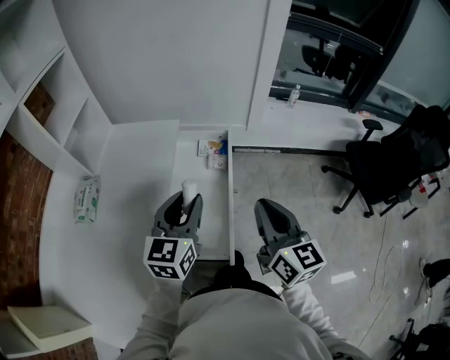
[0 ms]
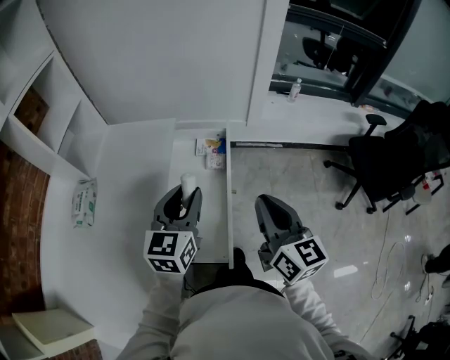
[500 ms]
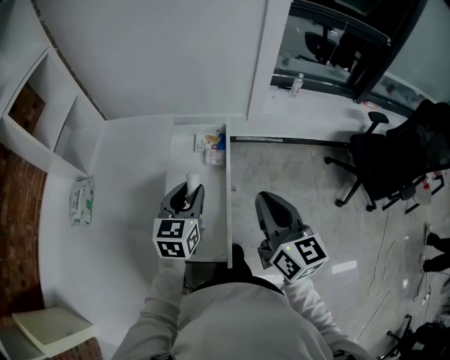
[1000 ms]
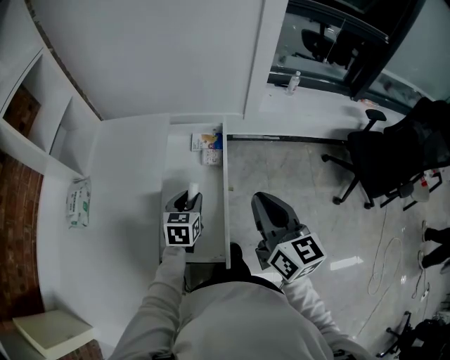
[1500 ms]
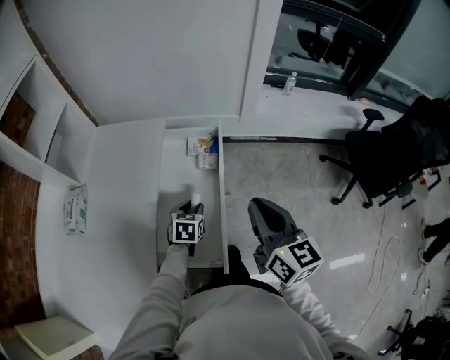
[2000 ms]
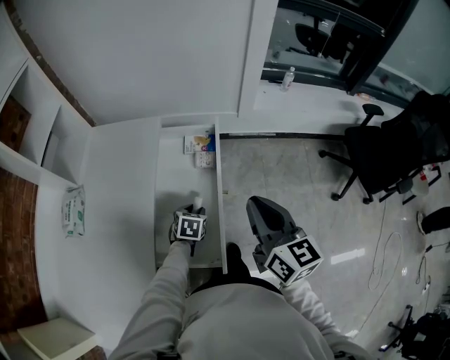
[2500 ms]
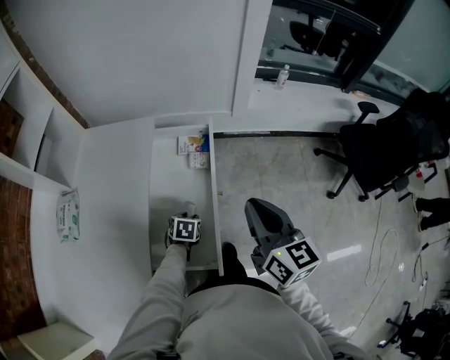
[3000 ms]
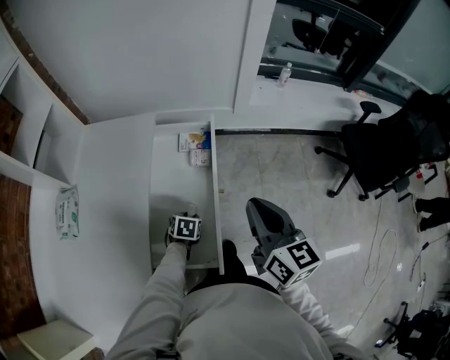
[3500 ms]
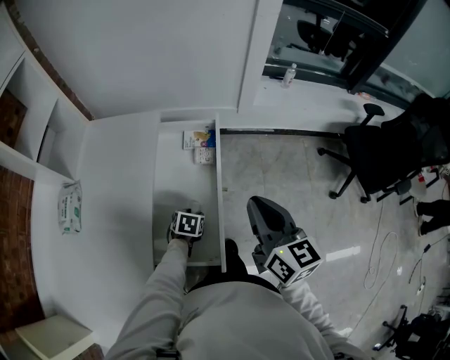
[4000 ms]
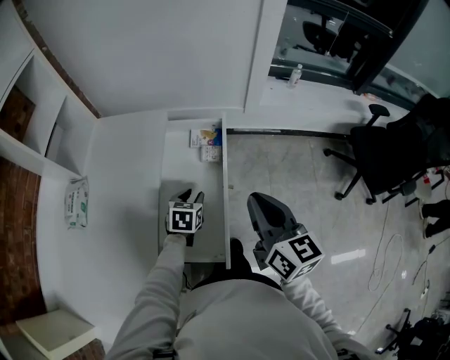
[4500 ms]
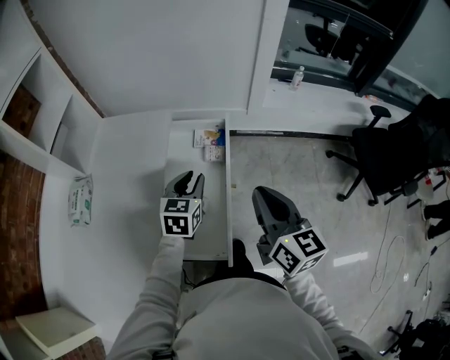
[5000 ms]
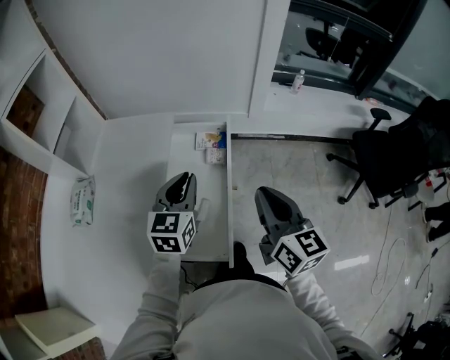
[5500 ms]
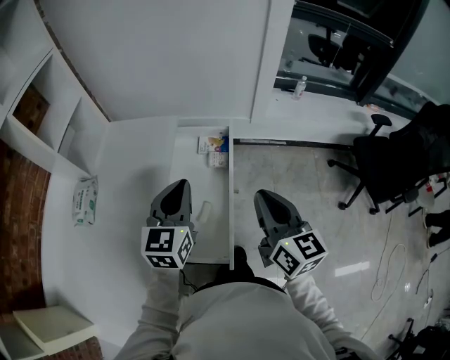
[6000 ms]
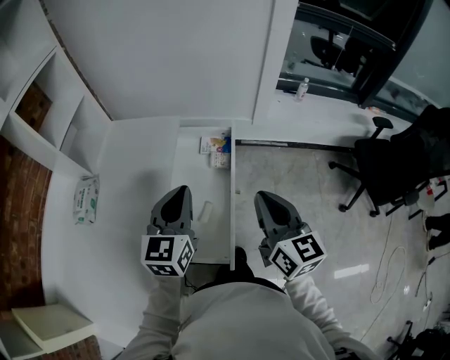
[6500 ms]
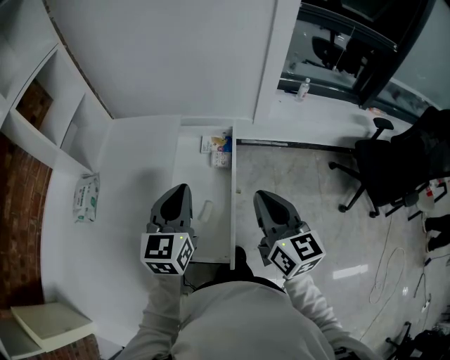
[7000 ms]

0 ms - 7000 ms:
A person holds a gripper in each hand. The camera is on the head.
0 ms - 2000 ms: The right gripper goes about 5 cm forward, while the left gripper goes approximately 25 cm downward, and tilts its fingers some 40 degrees downward.
2000 ms - 3500 ms: The left gripper is displaced downward by approximately 10 cm.
3500 ms - 5000 ms: The left gripper moves upward, some 25 cm, and angles its fingers upward, by about 40 degrees.
5000 ms - 7000 ms: The left gripper goes approximately 15 cm upward and backward, and closes.

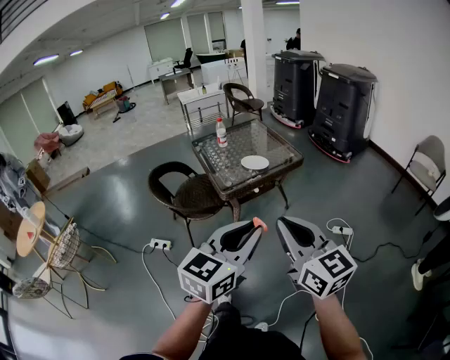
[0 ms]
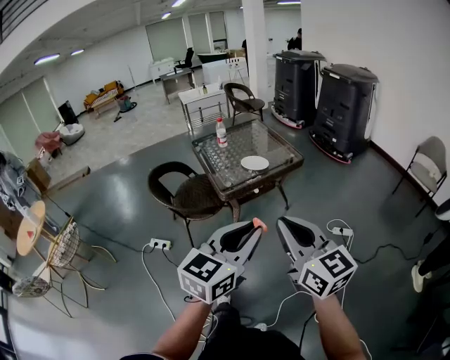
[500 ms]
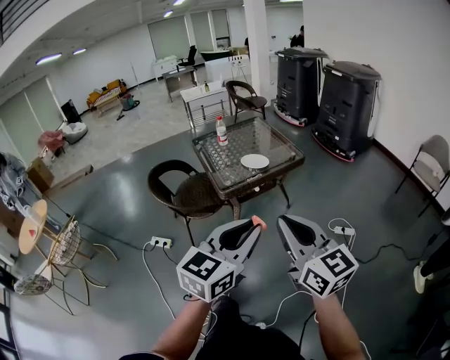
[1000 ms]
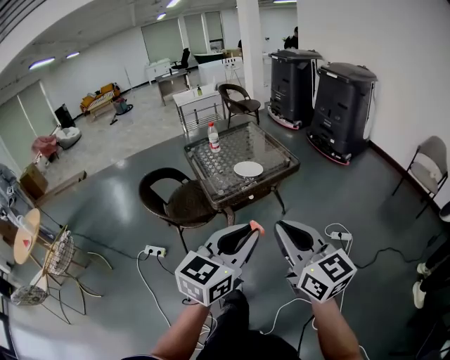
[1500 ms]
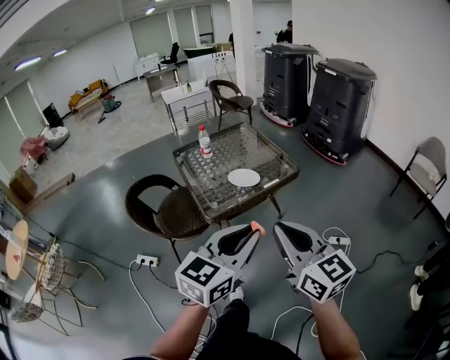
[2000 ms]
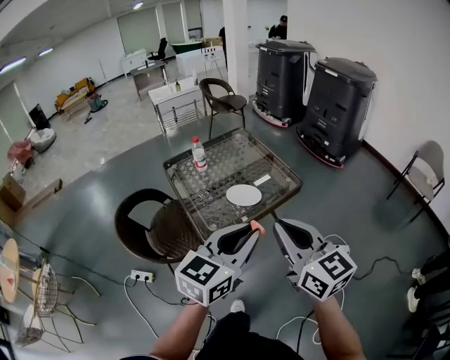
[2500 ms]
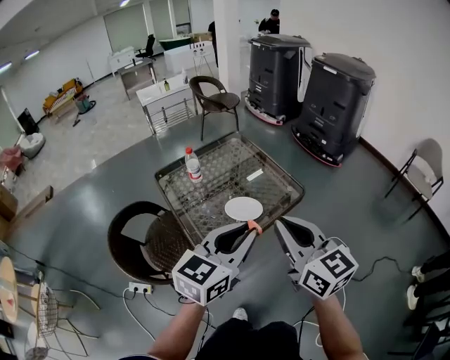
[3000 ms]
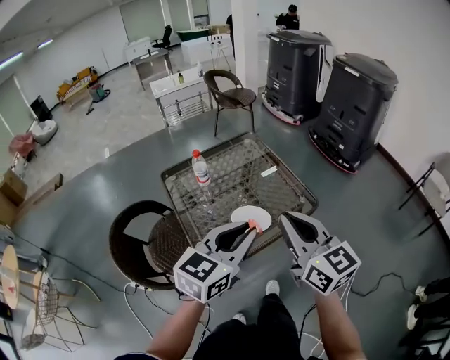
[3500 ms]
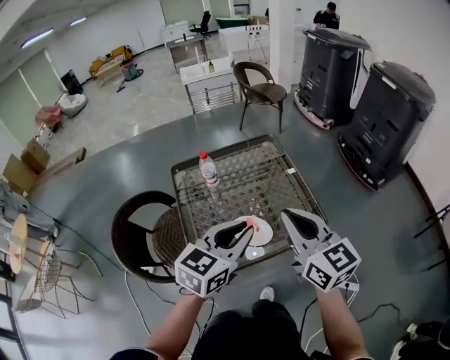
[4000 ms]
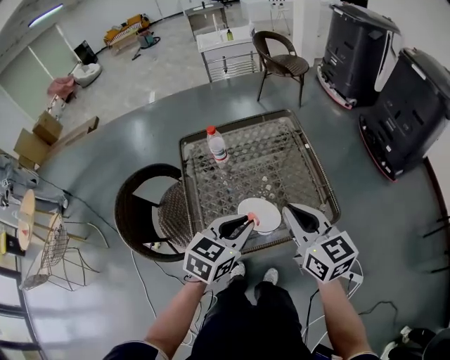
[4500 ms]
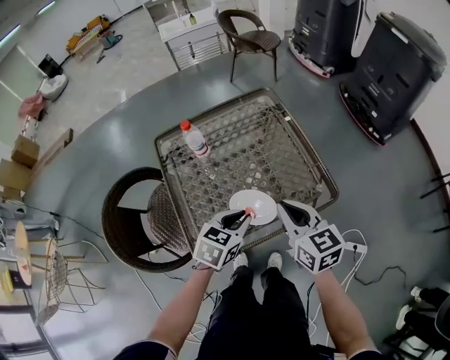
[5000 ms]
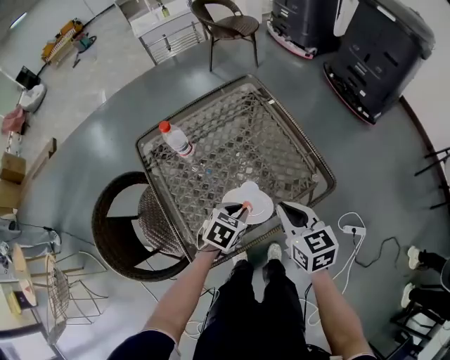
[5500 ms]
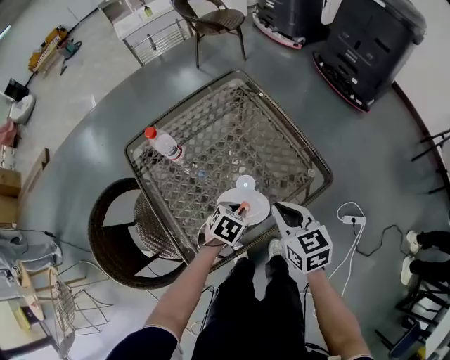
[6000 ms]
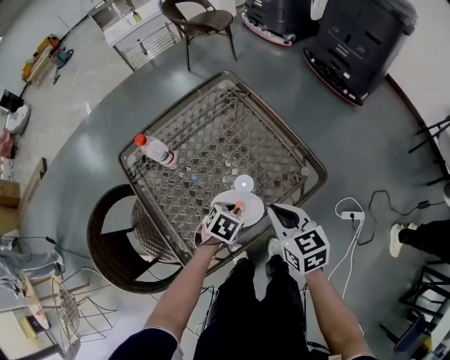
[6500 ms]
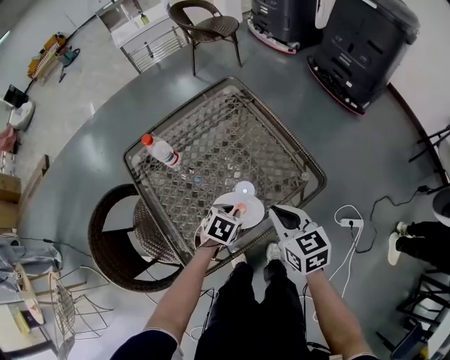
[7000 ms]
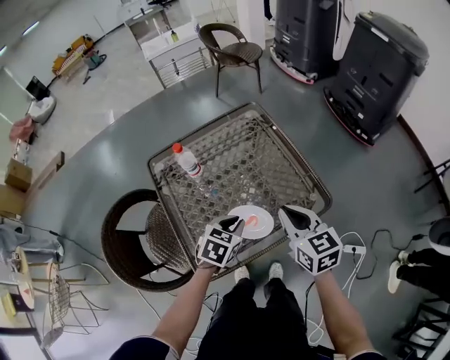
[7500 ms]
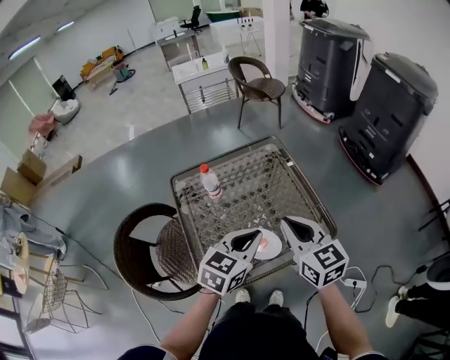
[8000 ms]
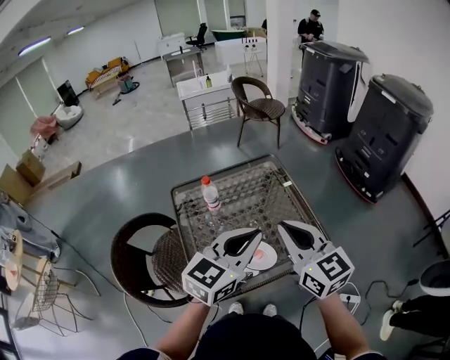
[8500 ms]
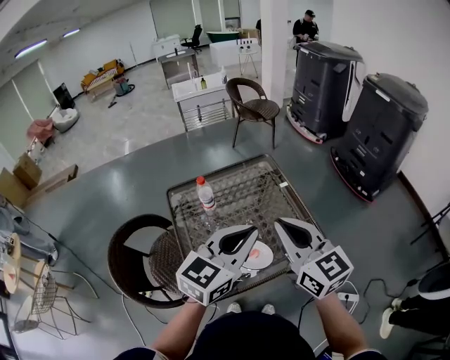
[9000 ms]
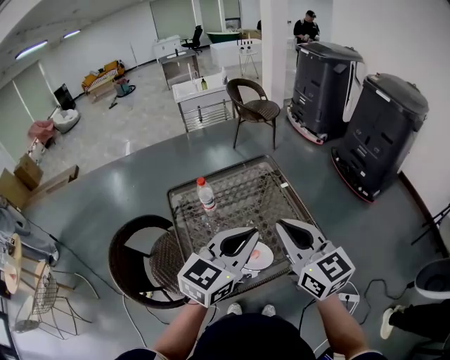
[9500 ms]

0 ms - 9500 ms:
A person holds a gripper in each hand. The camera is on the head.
0 ms - 2000 ms: Both grippers travel together forward, about 15 cm.
2000 ms - 4000 ms: Both grippers move forward, roughly 40 cm.
4000 ms - 5500 ms: Both grippers move downward, about 25 cm. The left gripper tilts its fingers some 40 degrees downward. The right gripper changes its angle by roughly 30 degrees.
5500 ms - 7500 ms: The grippers both shift upward by roughly 5 cm.
7500 ms - 9500 ms: The grippers both shift upward by approximately 25 cm. The left gripper tilts its fingers some 40 degrees upward, while the right gripper turns by roughly 20 degrees.

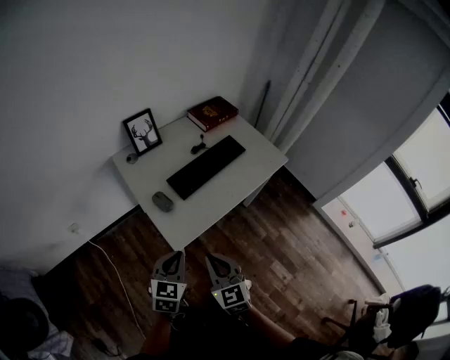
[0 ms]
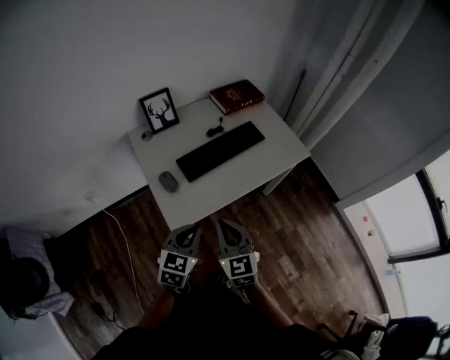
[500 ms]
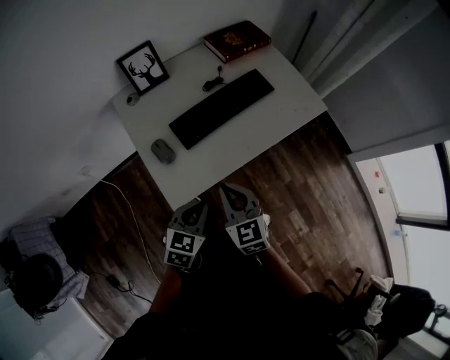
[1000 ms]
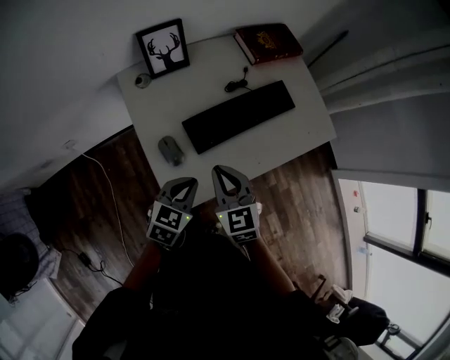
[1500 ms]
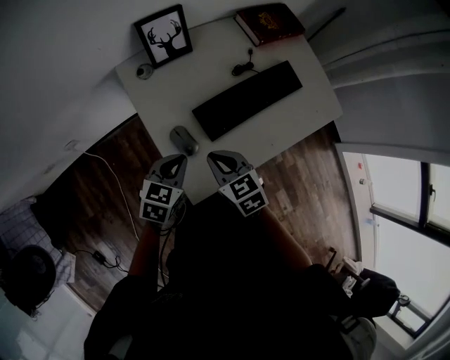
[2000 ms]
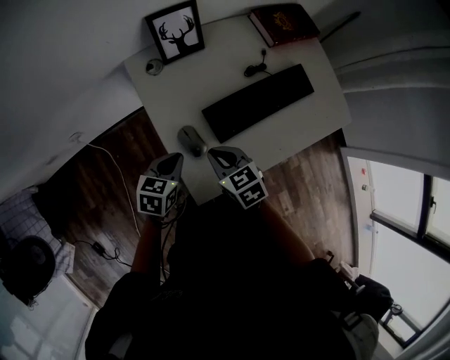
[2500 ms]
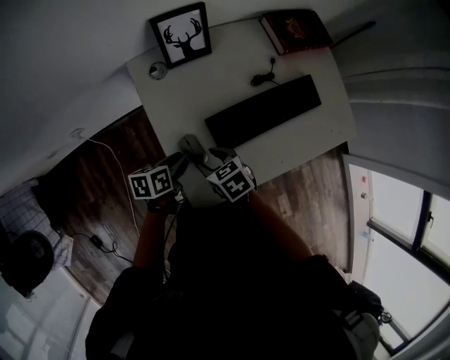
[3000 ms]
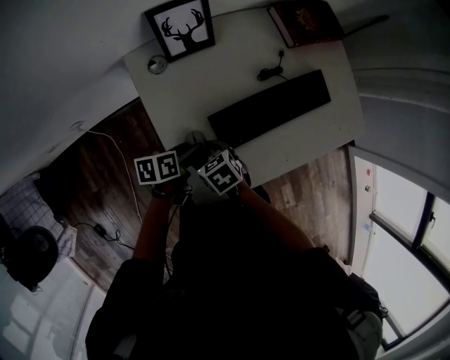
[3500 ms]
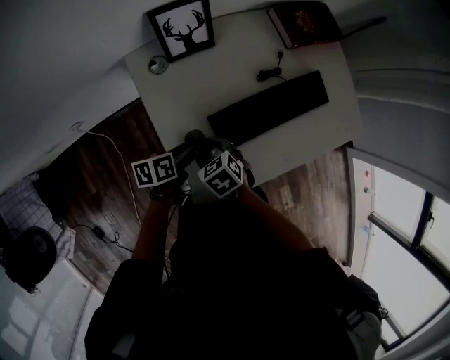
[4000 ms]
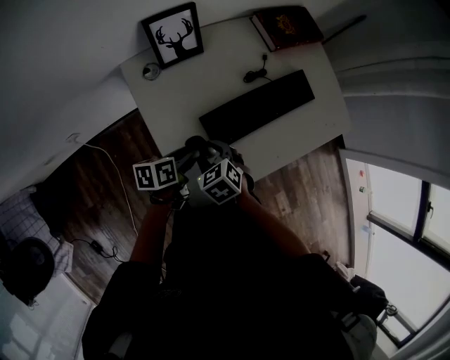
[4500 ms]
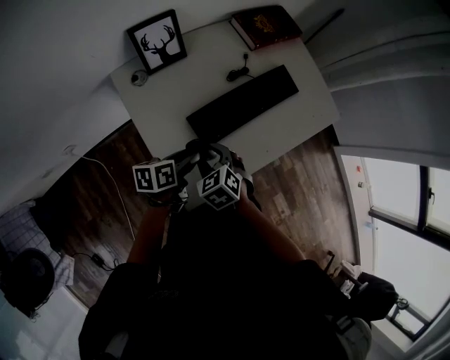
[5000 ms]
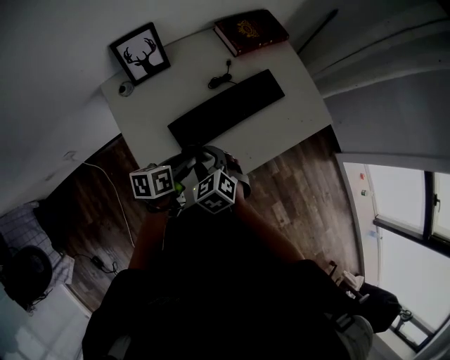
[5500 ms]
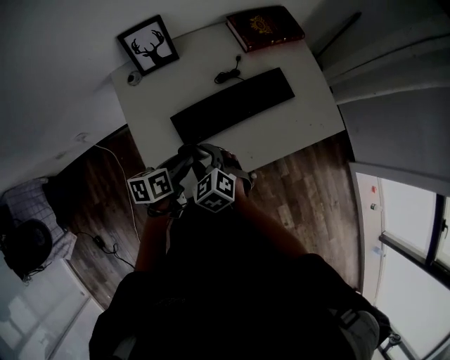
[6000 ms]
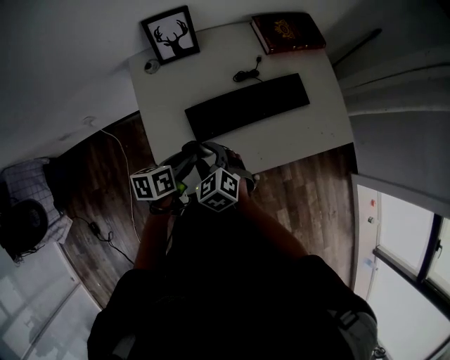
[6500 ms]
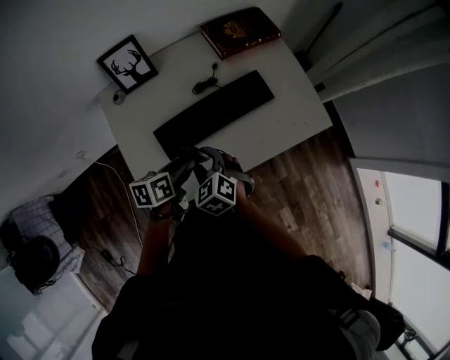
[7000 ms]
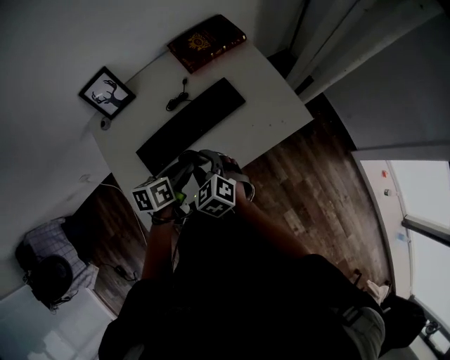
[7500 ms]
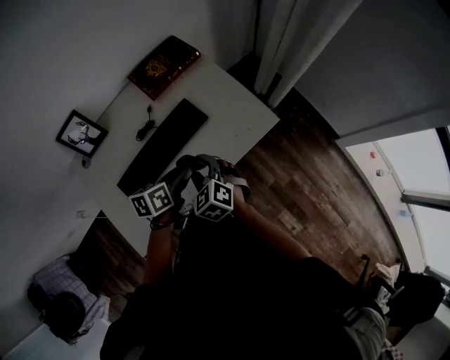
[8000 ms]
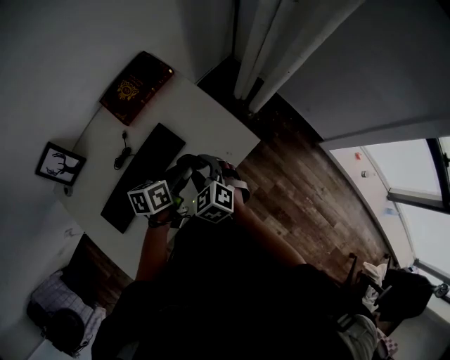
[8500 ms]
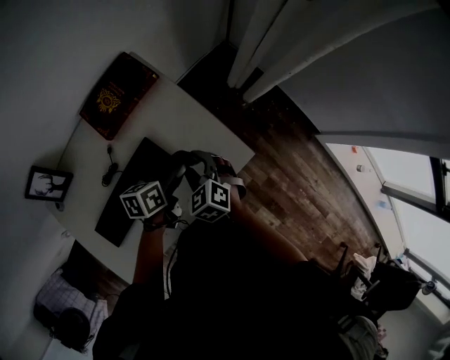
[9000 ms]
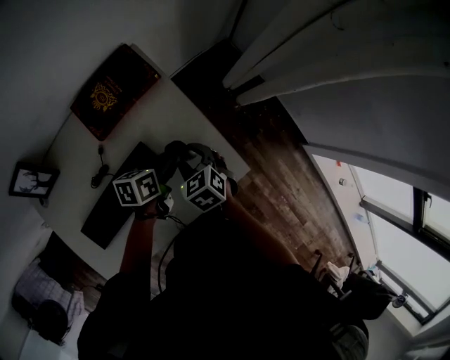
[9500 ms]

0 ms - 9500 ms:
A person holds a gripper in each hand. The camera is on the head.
0 ms - 2000 ms: The right gripper goes approximately 25 cm forward and downward, and swivels roughly 30 degrees. Meanwhile the left gripper is displaced forward by some 20 cm.
2000 ms - 4000 ms: Both grippers move downward, about 10 cm. The right gripper rotates some 20 degrees, and opens; the left gripper twists approximately 60 degrees counterclockwise, seen from behind, and opens up.
4000 ms - 5500 ms: The grippers both shift to the right and upward by roughly 15 cm. The right gripper swivels roughly 20 degrees.
5500 ms - 7500 ms: The two grippers go some 15 cm to the right.
7500 ms - 9500 ms: Both grippers move forward and to the right, some 35 cm. The right gripper swivels approximately 20 degrees.
